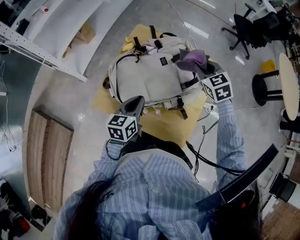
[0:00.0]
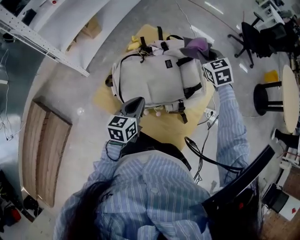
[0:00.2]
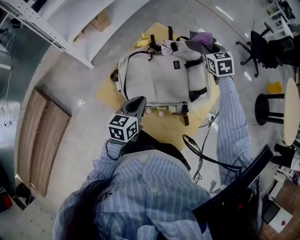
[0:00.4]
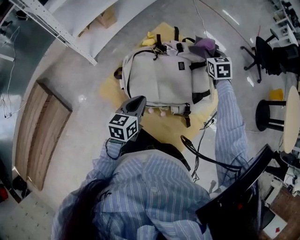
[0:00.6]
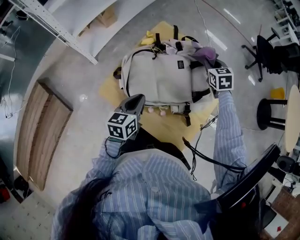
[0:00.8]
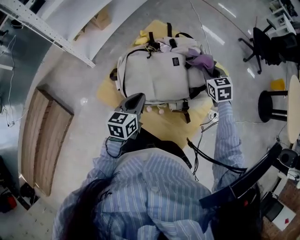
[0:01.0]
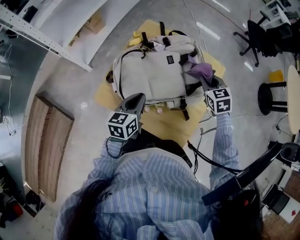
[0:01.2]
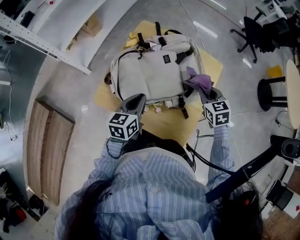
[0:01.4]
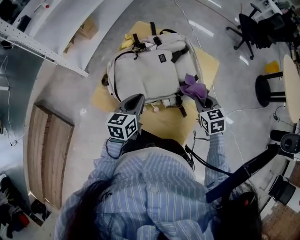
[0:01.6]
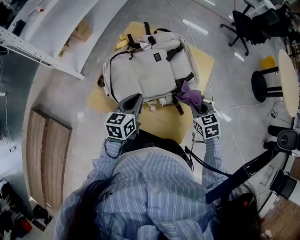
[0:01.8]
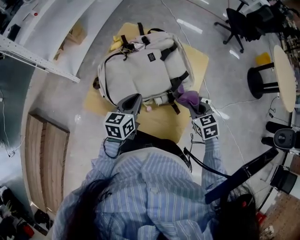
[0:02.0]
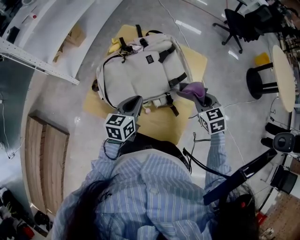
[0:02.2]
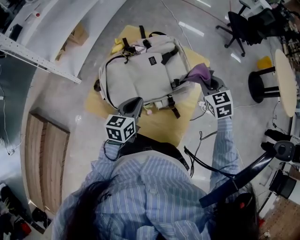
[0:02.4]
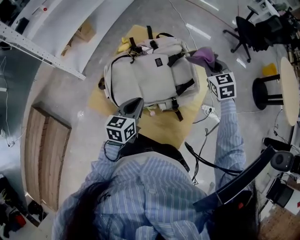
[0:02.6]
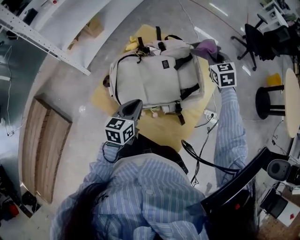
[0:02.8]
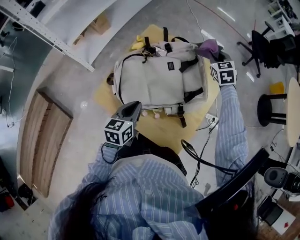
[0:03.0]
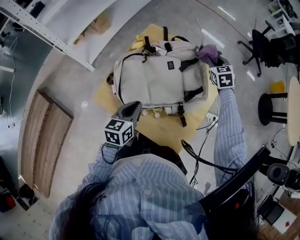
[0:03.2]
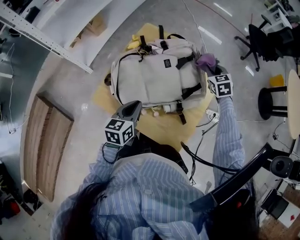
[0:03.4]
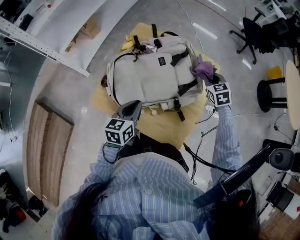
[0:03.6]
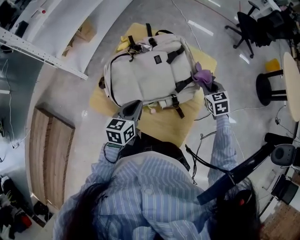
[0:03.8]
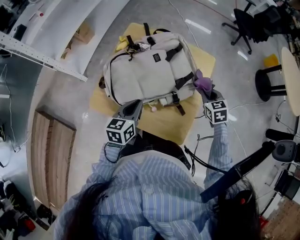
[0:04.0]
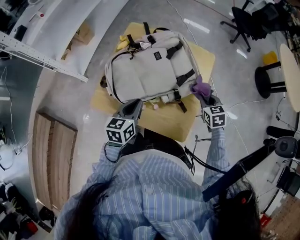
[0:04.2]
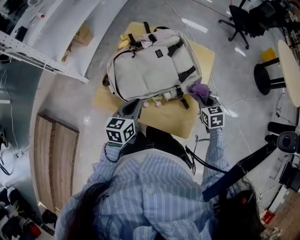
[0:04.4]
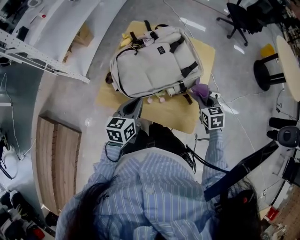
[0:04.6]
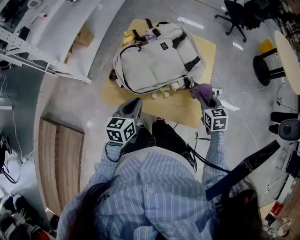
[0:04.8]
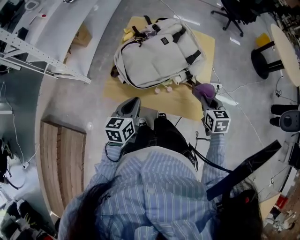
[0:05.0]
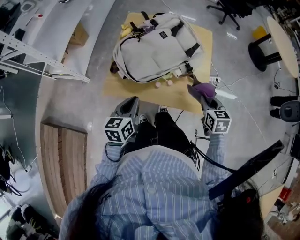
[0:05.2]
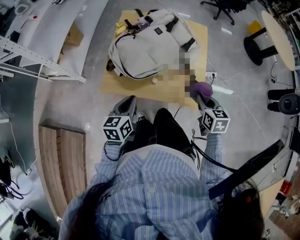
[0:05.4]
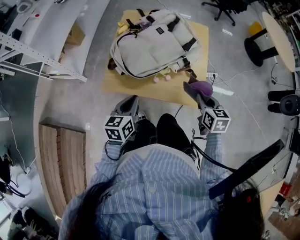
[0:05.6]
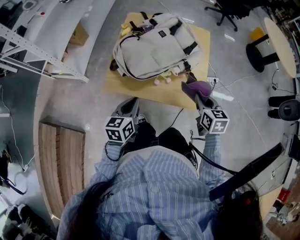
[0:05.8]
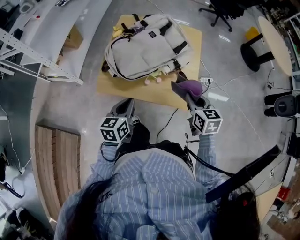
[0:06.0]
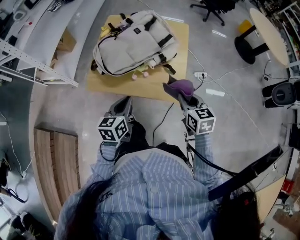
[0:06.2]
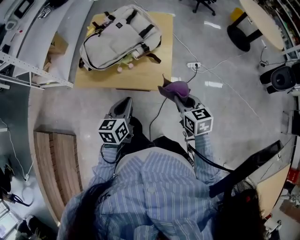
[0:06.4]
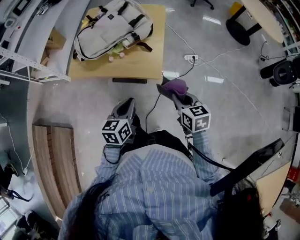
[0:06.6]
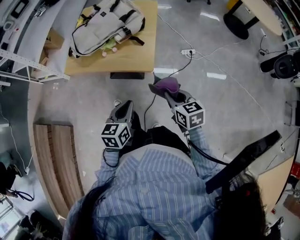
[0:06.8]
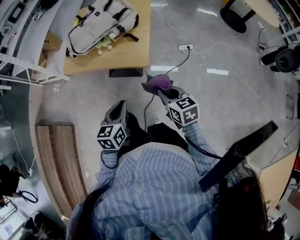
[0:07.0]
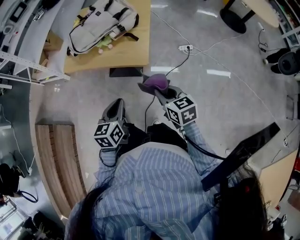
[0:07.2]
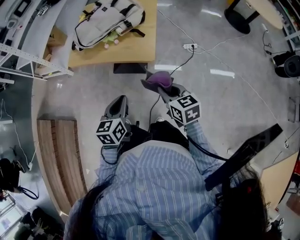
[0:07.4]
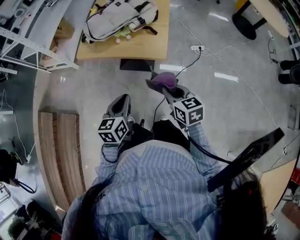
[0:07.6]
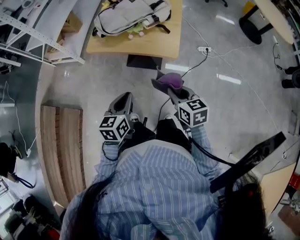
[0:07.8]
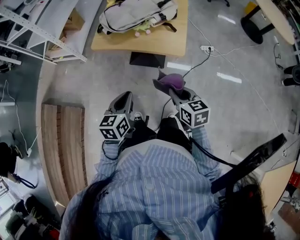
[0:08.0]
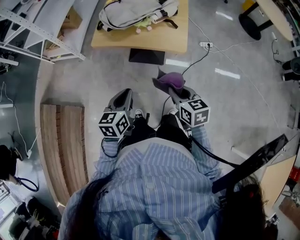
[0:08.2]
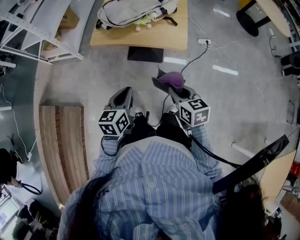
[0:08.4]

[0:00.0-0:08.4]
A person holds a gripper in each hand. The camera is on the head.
0:00.0 to 0:01.4: The right gripper moves backward and downward, some 10 cm.
0:01.4 to 0:02.8: The right gripper is displaced forward by some 20 cm.
0:02.8 to 0:04.2: The right gripper goes approximately 25 cm backward and downward, and turns by approximately 20 degrees.
0:04.2 to 0:05.6: The left gripper travels backward and to the left by about 15 cm, while the right gripper heads backward, covering approximately 20 cm, and turns by roughly 30 degrees.
0:05.6 to 0:07.0: The right gripper travels backward and to the right by about 25 cm. Meanwhile the left gripper travels to the right and backward by approximately 35 cm.
0:07.0 to 0:08.4: Both grippers travel together to the left, about 20 cm.

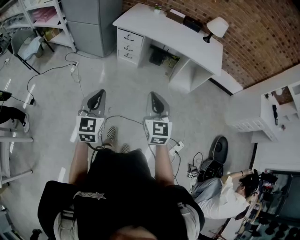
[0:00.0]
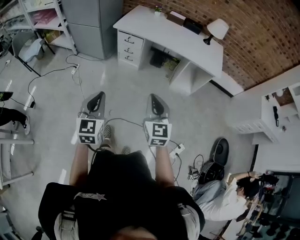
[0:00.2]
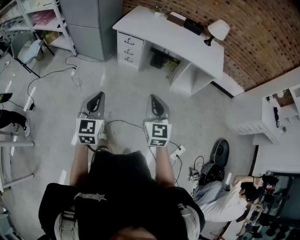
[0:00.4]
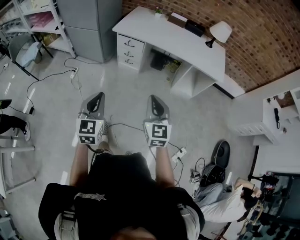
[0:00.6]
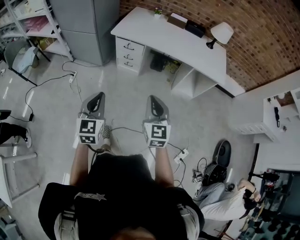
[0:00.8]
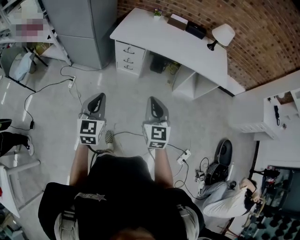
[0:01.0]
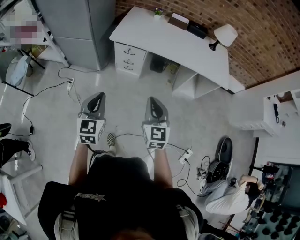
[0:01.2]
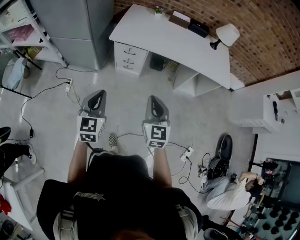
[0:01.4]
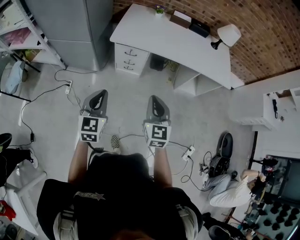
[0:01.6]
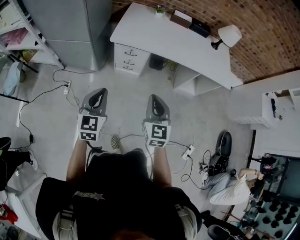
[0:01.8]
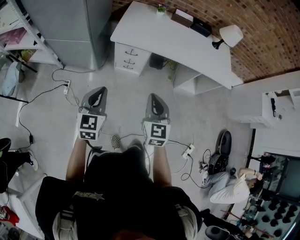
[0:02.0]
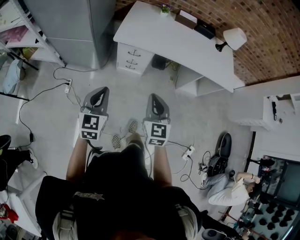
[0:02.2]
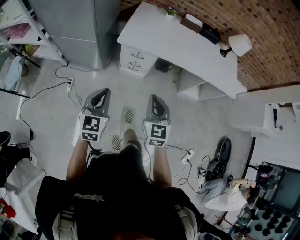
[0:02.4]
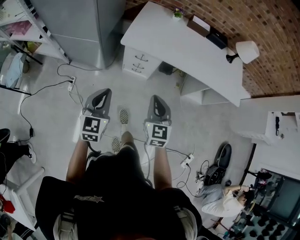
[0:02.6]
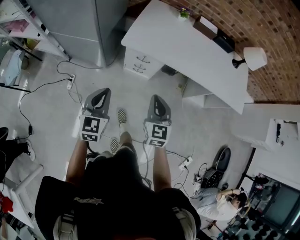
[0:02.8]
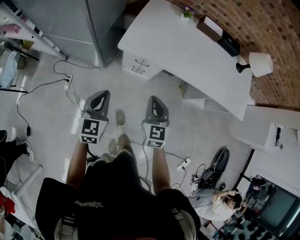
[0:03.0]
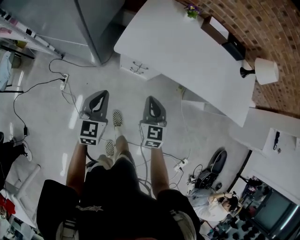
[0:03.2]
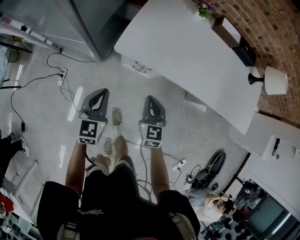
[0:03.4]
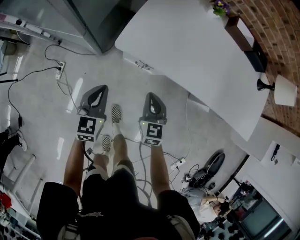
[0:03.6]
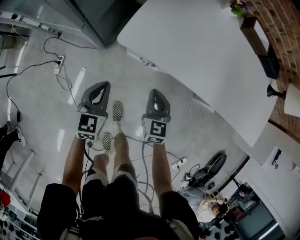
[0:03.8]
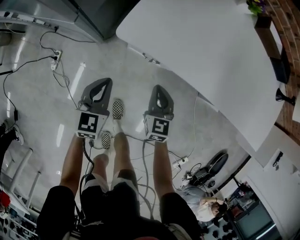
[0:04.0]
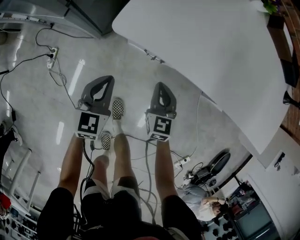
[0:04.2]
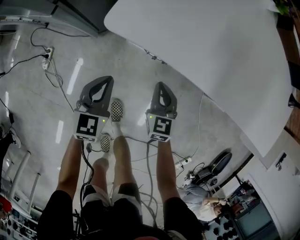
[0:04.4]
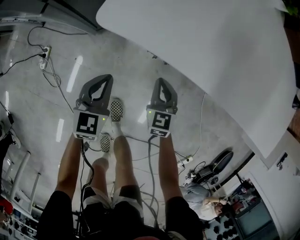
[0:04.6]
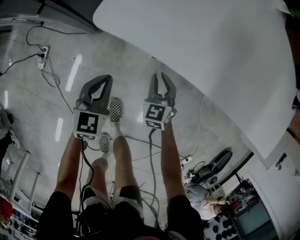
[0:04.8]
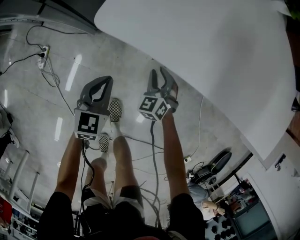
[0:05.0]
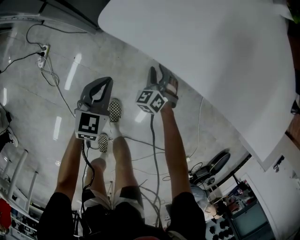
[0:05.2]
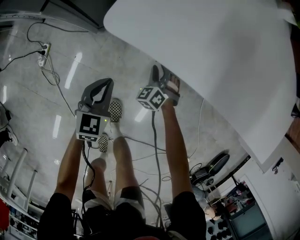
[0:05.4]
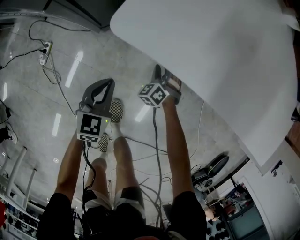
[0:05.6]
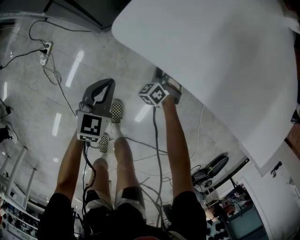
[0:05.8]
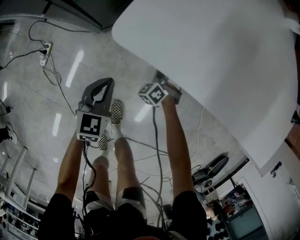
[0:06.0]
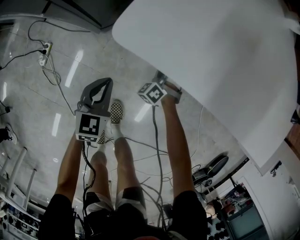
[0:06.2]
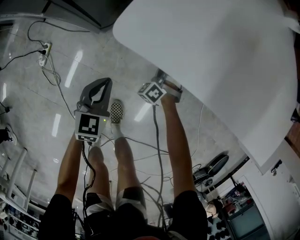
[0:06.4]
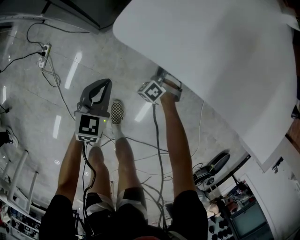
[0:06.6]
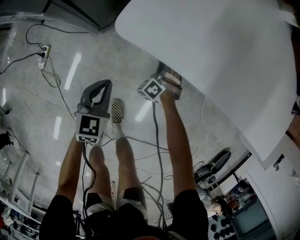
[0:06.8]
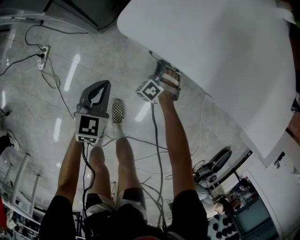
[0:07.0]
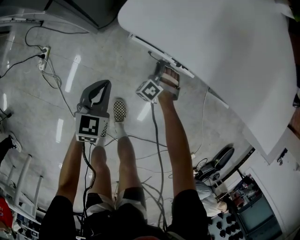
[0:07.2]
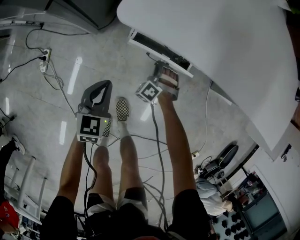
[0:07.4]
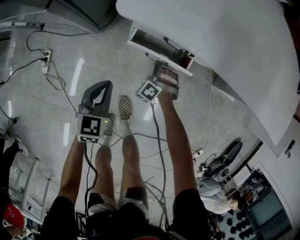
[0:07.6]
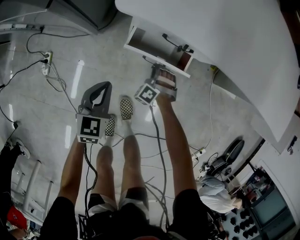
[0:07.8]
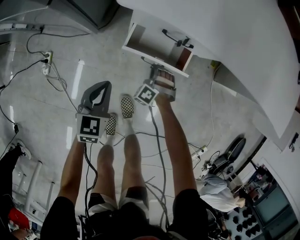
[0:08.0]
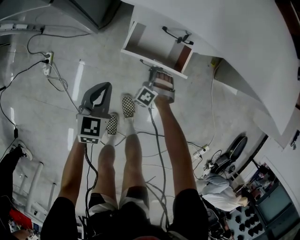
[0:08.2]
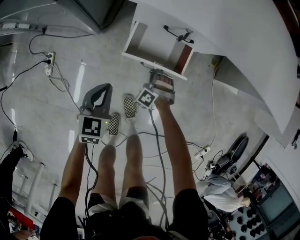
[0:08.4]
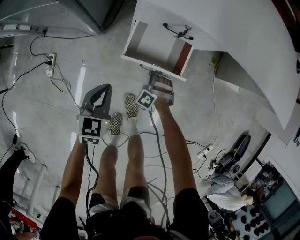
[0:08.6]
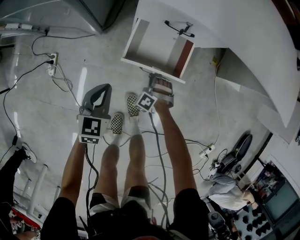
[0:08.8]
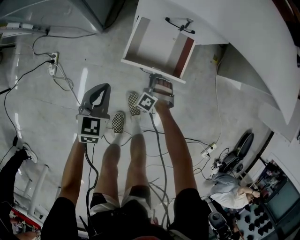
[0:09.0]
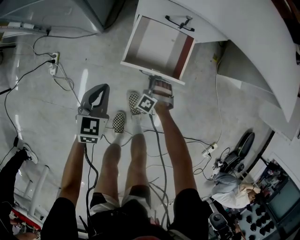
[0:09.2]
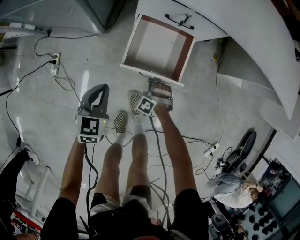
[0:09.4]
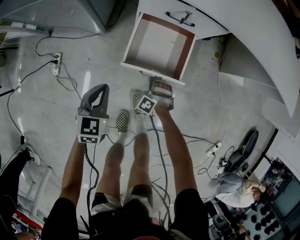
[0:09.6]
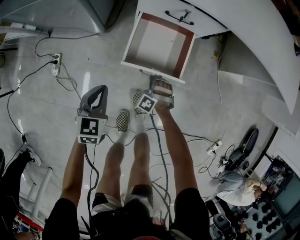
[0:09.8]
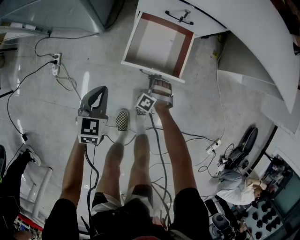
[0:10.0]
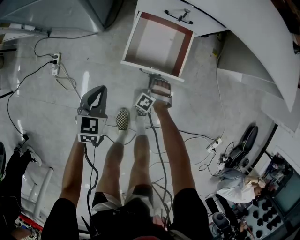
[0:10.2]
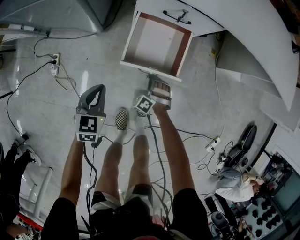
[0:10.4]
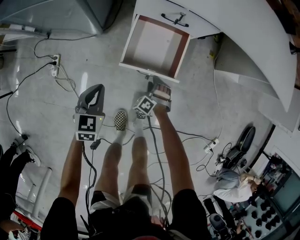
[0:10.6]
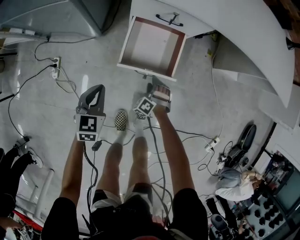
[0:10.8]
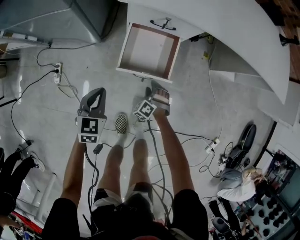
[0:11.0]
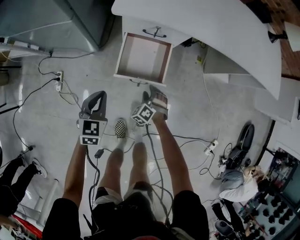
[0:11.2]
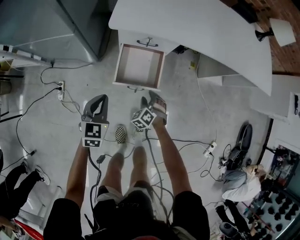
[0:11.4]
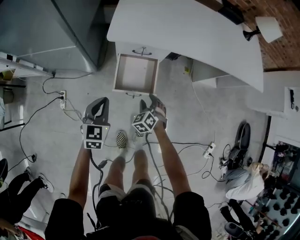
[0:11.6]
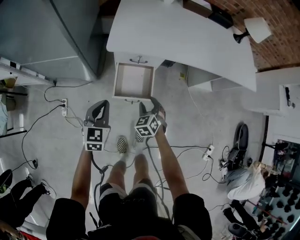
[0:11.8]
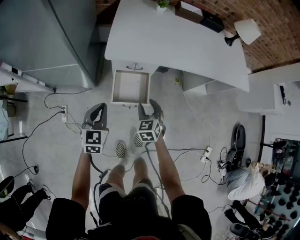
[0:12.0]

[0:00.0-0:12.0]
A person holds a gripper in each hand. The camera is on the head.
0:00.0 to 0:01.6: Both grippers travel together forward and to the left, roughly 35 cm.
0:01.6 to 0:03.0: Both grippers travel together forward and downward, approximately 25 cm.
0:03.0 to 0:04.4: The two grippers go some 40 cm downward and forward.
0:04.4 to 0:06.0: The left gripper is displaced downward by about 10 cm. Meanwhile the right gripper heads downward and forward, covering approximately 20 cm, rotates around the line of its fingers by approximately 50 degrees, counterclockwise from behind, and opens up.
0:06.0 to 0:07.6: Both grippers move backward, about 5 cm. The right gripper closes its fingers.
0:07.6 to 0:09.0: The right gripper goes approximately 15 cm backward; the left gripper moves backward, about 10 cm.
0:09.0 to 0:10.4: The grippers both shift backward by roughly 5 cm.
0:10.4 to 0:12.0: Both grippers move upward, approximately 35 cm. The right gripper twists about 50 degrees clockwise, seen from behind, and opens.

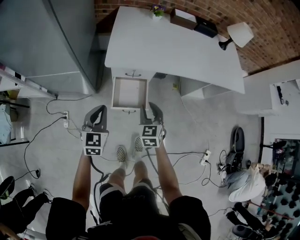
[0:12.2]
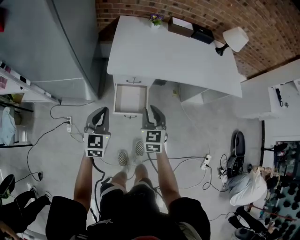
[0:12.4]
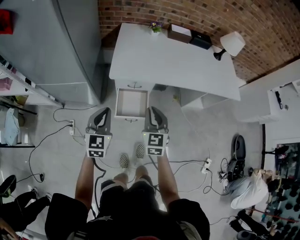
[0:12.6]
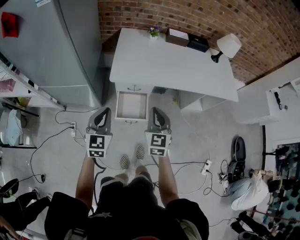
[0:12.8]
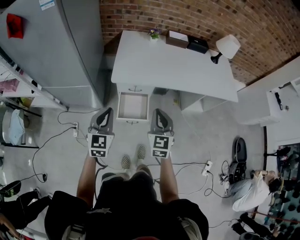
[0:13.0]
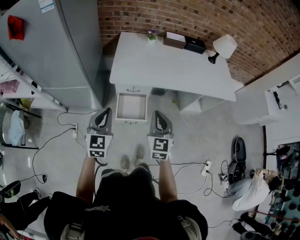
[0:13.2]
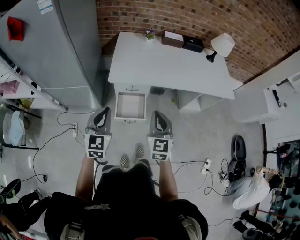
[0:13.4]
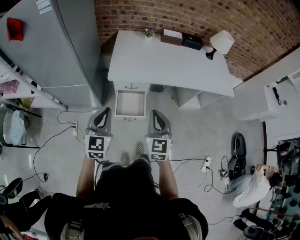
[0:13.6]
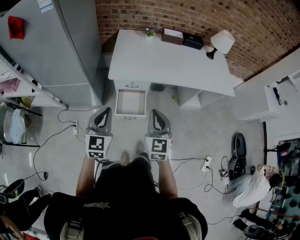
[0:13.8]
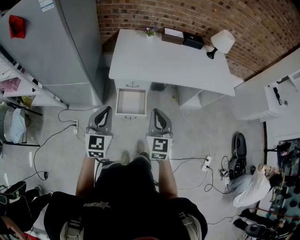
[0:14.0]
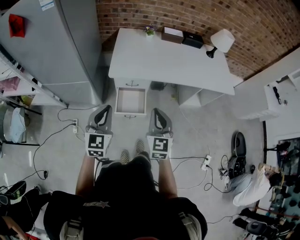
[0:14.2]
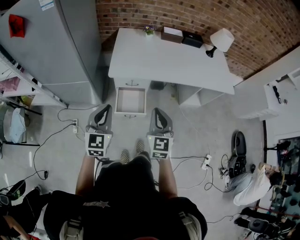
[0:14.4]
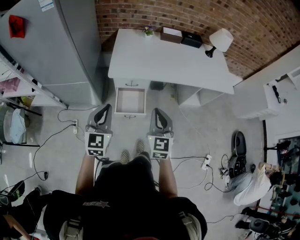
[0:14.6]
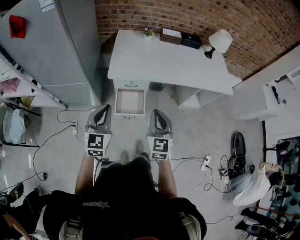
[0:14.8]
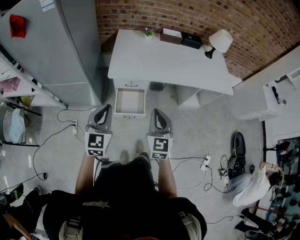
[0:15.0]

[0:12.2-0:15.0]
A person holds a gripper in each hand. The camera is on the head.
0:12.2 to 0:13.6: The grippers both shift upward by roughly 20 cm. The right gripper rotates roughly 20 degrees, and closes its fingers.
0:13.6 to 0:15.0: There are only small adjustments of the grippers.
